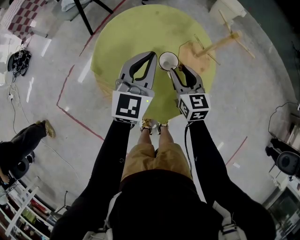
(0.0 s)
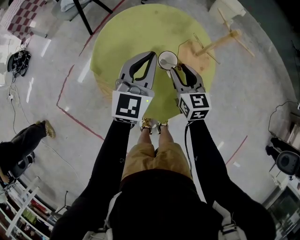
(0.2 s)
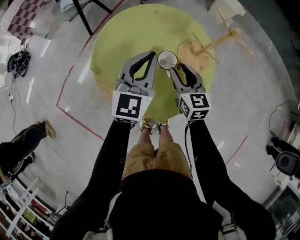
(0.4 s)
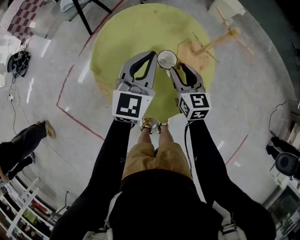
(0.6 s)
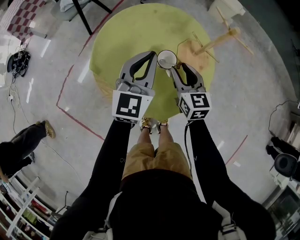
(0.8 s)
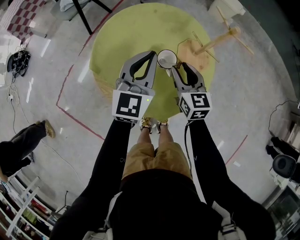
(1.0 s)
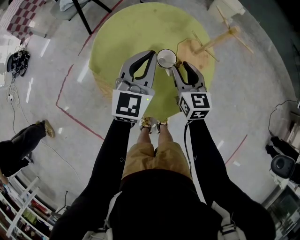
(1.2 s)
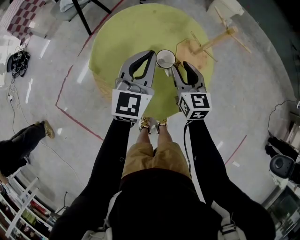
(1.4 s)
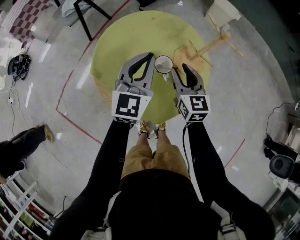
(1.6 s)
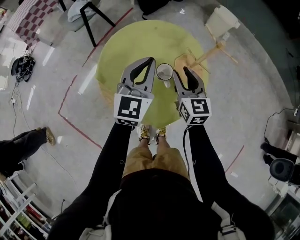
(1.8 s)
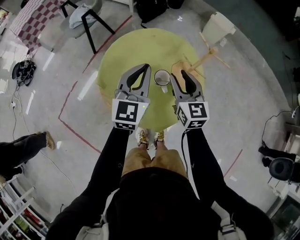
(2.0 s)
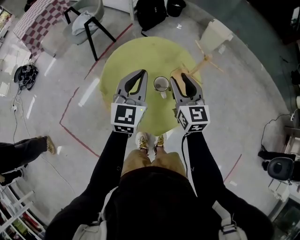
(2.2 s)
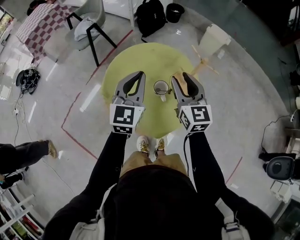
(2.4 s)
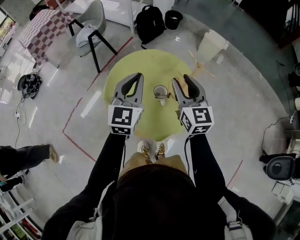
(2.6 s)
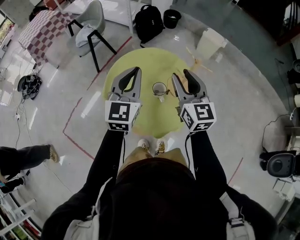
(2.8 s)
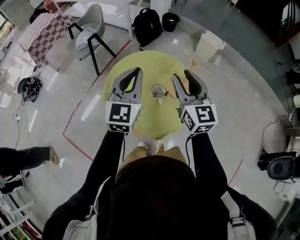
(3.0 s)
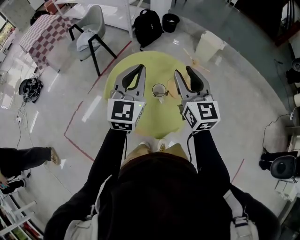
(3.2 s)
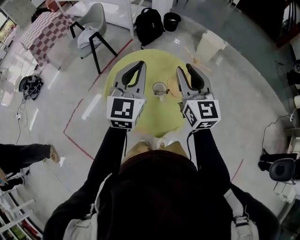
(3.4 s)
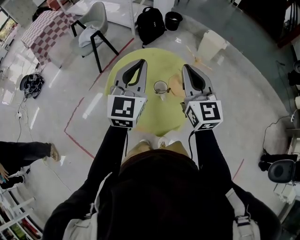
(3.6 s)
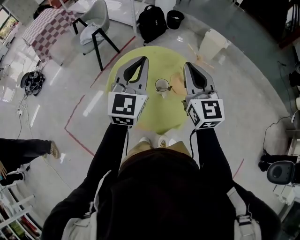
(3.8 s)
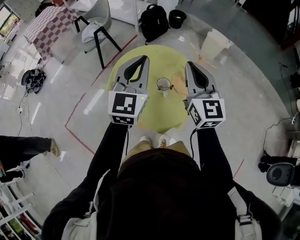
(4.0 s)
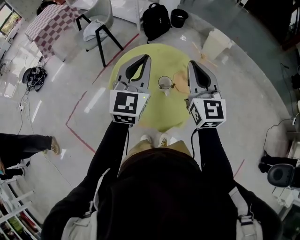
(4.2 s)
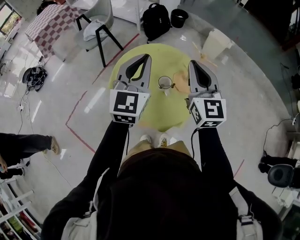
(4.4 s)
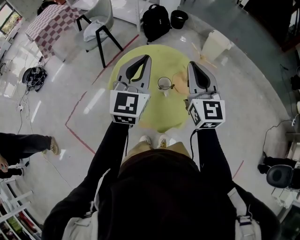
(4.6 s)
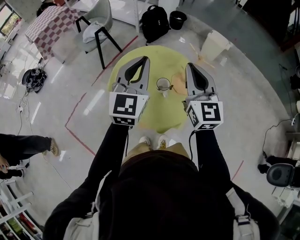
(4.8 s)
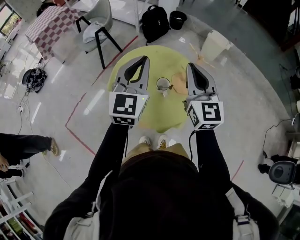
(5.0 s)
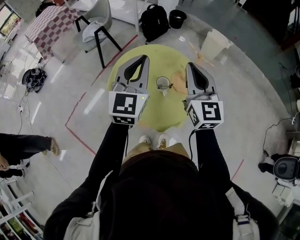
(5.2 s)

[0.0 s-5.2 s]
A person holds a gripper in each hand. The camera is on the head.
0.0 to 1.8 s: The right gripper travels upward by approximately 10 cm.
1.8 to 3.4 s: The two grippers go roughly 20 cm upward.
3.4 to 5.2 s: The right gripper closes its fingers.

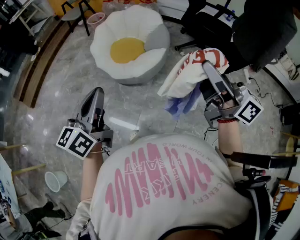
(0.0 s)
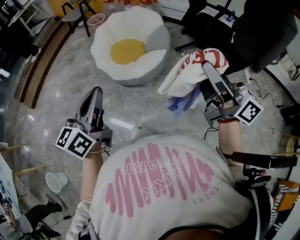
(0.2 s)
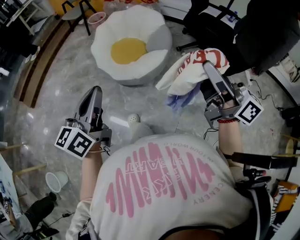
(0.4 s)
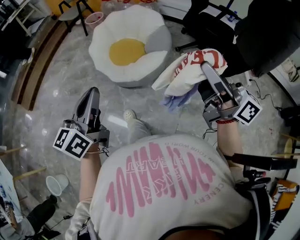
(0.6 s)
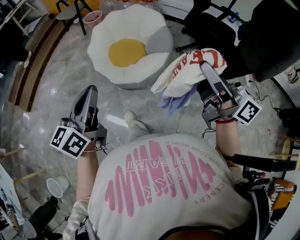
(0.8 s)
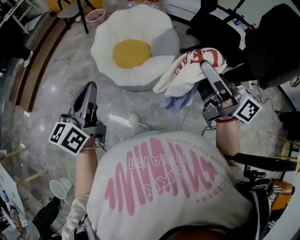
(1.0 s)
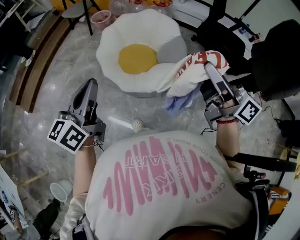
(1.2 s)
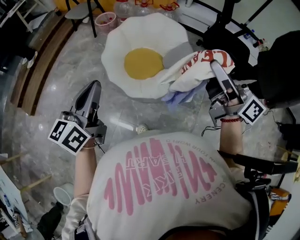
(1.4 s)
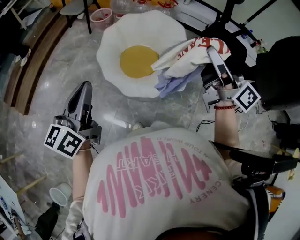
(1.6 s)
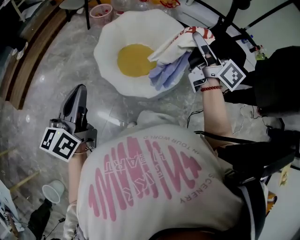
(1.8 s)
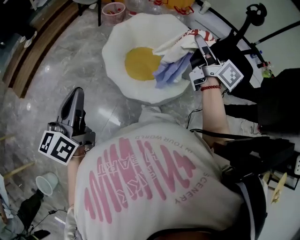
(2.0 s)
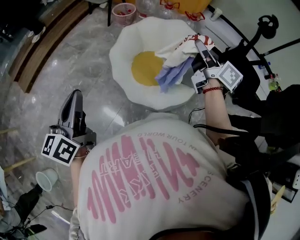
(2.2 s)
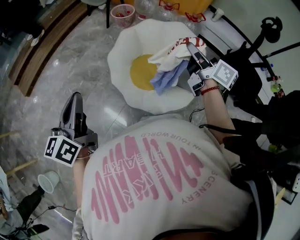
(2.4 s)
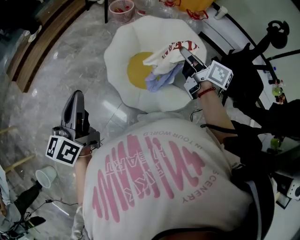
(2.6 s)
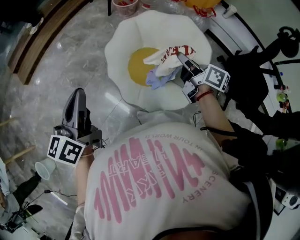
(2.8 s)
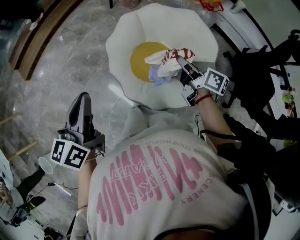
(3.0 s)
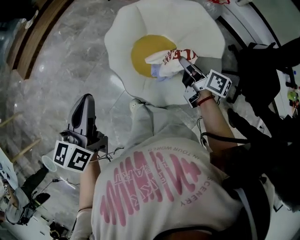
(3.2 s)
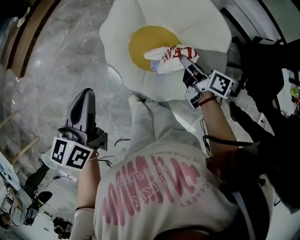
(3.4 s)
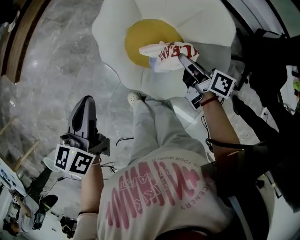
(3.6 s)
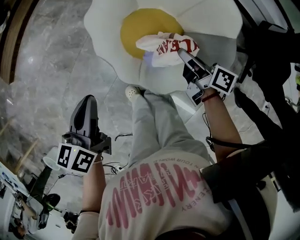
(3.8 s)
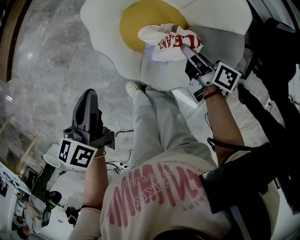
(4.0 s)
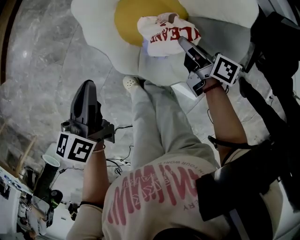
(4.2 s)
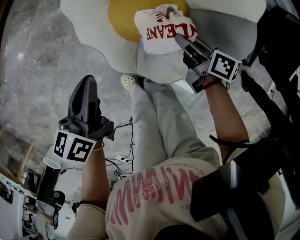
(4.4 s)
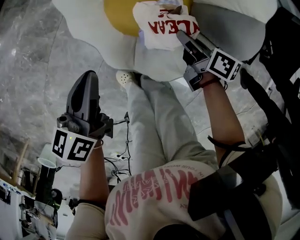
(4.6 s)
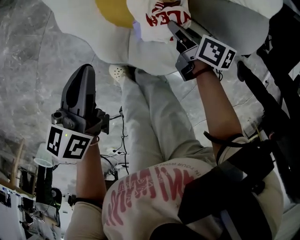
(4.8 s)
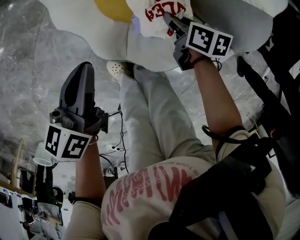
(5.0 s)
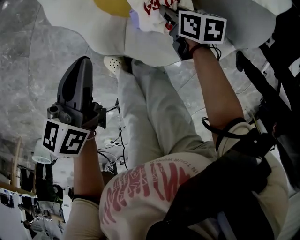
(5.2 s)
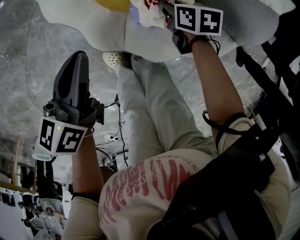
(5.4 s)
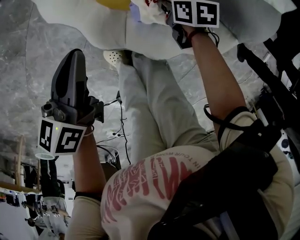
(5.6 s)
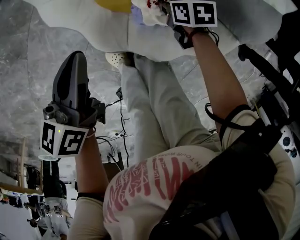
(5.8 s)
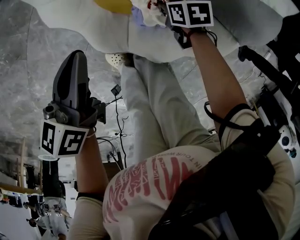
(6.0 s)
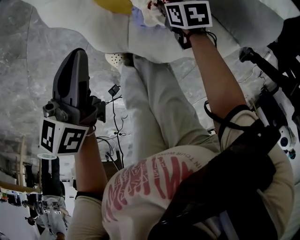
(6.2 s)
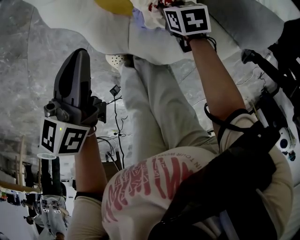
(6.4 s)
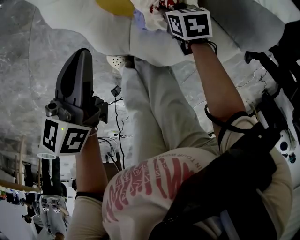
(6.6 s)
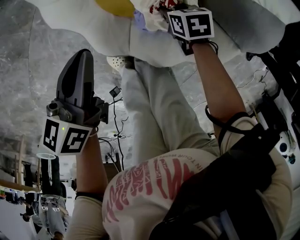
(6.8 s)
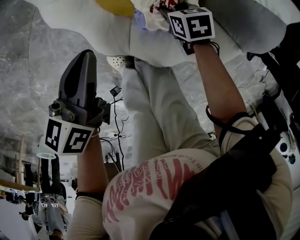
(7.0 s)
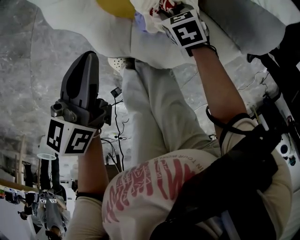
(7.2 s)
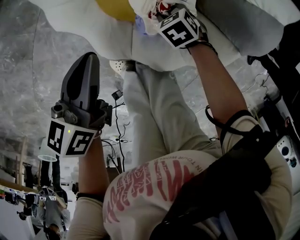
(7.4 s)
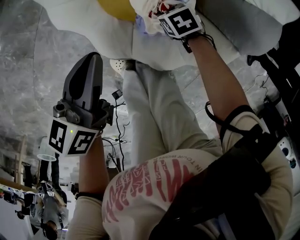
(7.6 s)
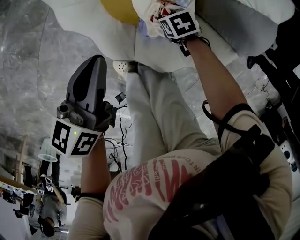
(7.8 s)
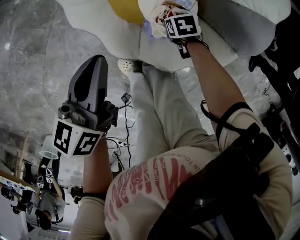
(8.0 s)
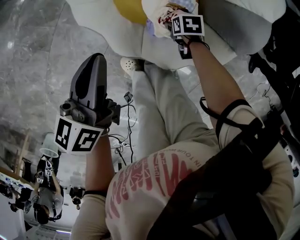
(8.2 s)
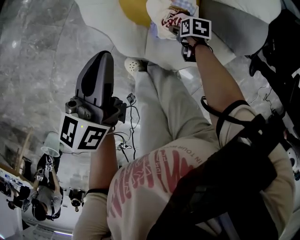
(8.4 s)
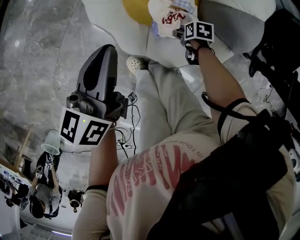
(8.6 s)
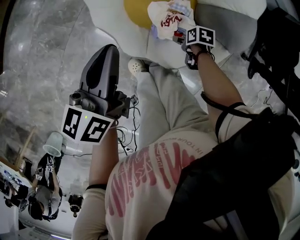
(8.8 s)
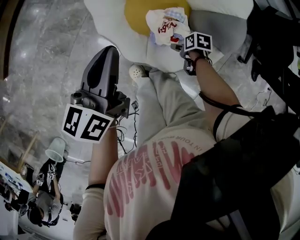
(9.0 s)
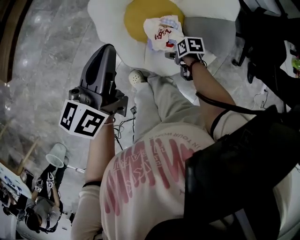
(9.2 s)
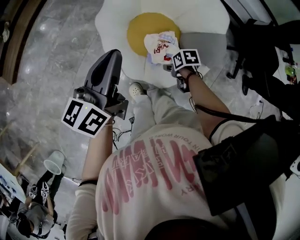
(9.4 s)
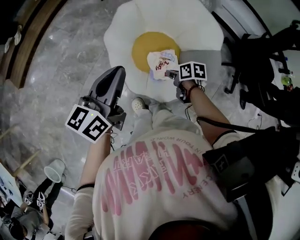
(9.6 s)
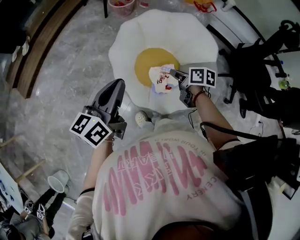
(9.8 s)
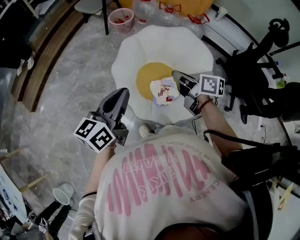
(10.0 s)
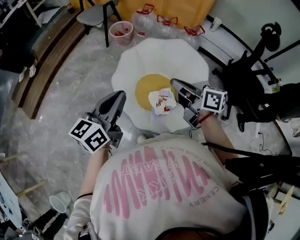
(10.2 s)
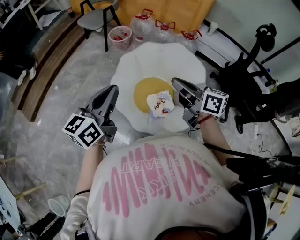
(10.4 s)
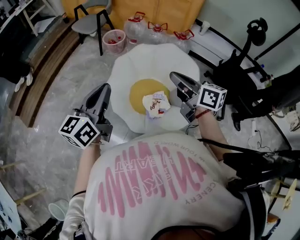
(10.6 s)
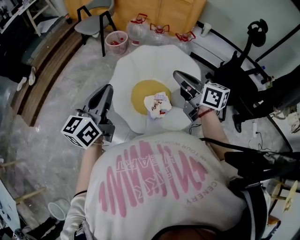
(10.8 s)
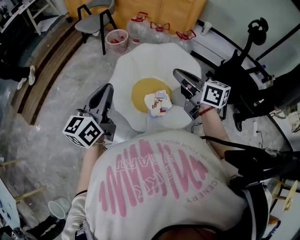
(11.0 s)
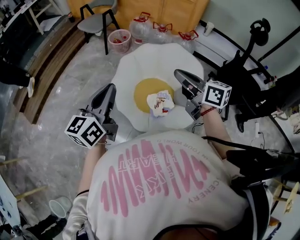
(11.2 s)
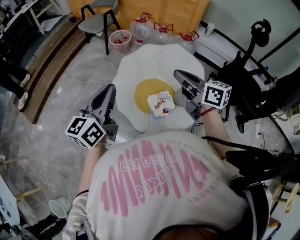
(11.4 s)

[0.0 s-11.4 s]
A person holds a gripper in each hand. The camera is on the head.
0.0 to 1.4 s: The right gripper heads forward, covering about 25 cm, while the left gripper shifts about 30 cm forward and to the left.
1.4 to 2.8 s: The right gripper shifts roughly 40 cm forward and downward, and changes its angle by about 40 degrees; the left gripper moves forward, some 15 cm, and swivels about 30 degrees.
2.8 to 4.2 s: The left gripper goes about 20 cm downward, forward and to the right, and changes its angle by roughly 30 degrees. Meanwhile the right gripper is displaced downward by some 10 cm, and turns by approximately 20 degrees.
4.2 to 5.6 s: The left gripper shifts about 10 cm downward; the right gripper moves downward, some 20 cm, and points its fingers some 40 degrees further downward.
5.6 to 7.2 s: The right gripper rotates roughly 30 degrees.
7.2 to 8.6 s: The left gripper shifts roughly 15 cm upward; the right gripper moves some 5 cm, changes its angle by some 40 degrees, and opens.
8.6 to 10.0 s: The left gripper travels upward by approximately 20 cm, and turns by roughly 20 degrees. The right gripper shifts approximately 50 cm upward, points its fingers some 60 degrees further upward, and closes up.
10.0 to 11.4 s: The right gripper heads upward, covering roughly 10 cm, and swivels about 30 degrees. The left gripper moves upward, roughly 5 cm.

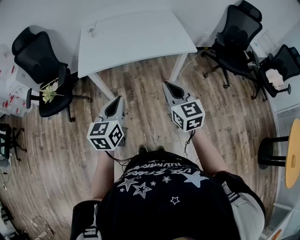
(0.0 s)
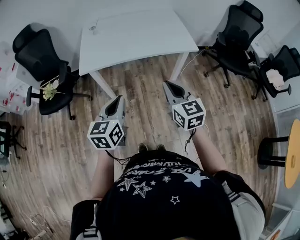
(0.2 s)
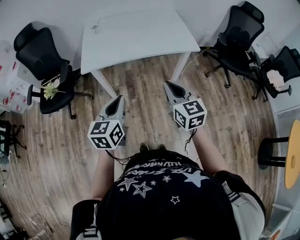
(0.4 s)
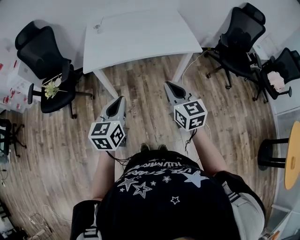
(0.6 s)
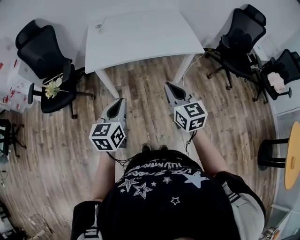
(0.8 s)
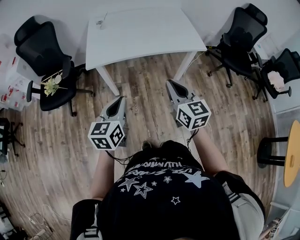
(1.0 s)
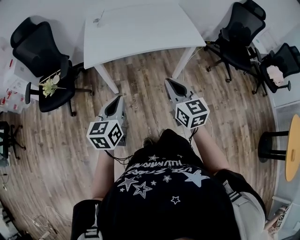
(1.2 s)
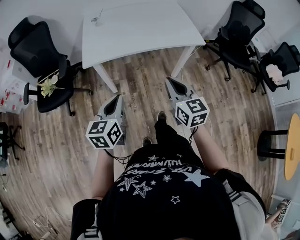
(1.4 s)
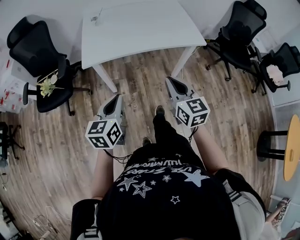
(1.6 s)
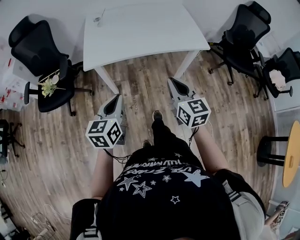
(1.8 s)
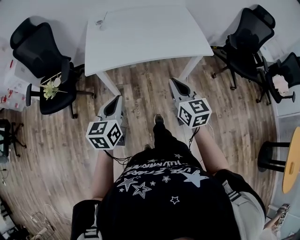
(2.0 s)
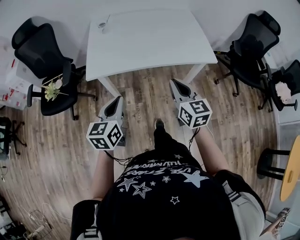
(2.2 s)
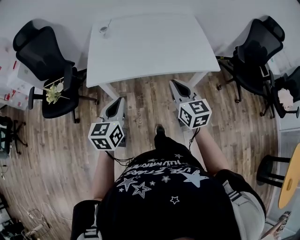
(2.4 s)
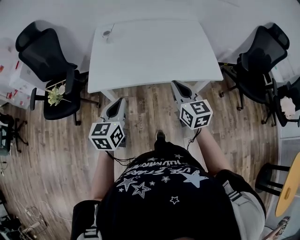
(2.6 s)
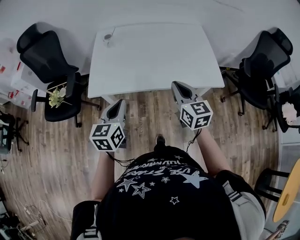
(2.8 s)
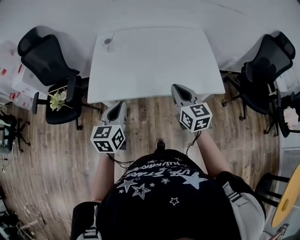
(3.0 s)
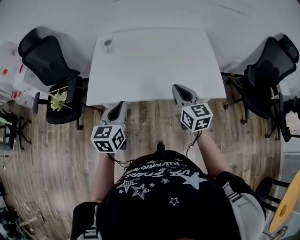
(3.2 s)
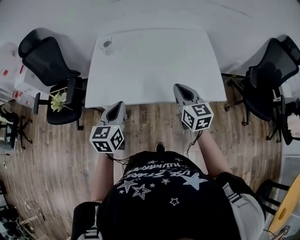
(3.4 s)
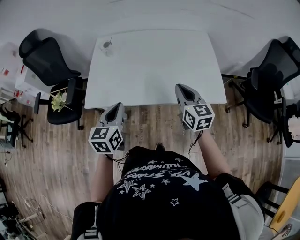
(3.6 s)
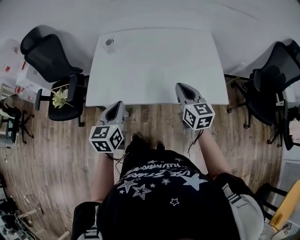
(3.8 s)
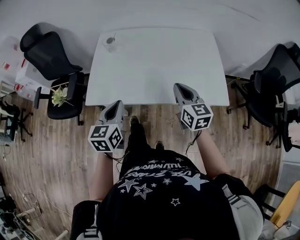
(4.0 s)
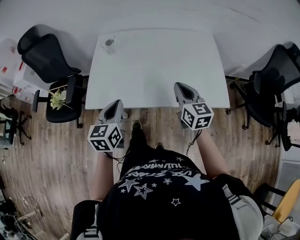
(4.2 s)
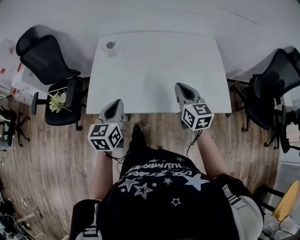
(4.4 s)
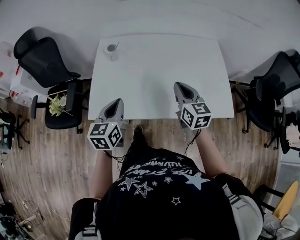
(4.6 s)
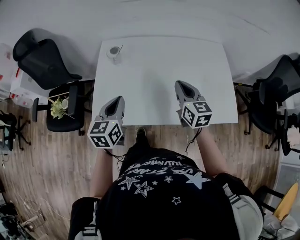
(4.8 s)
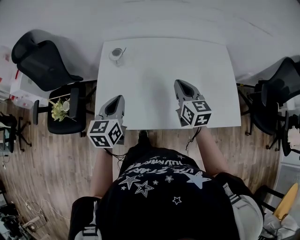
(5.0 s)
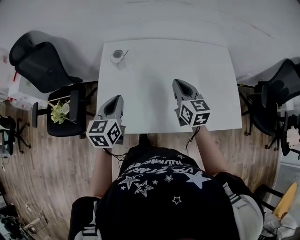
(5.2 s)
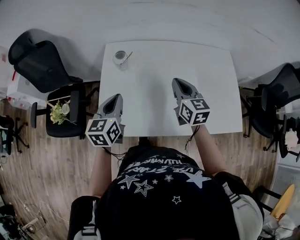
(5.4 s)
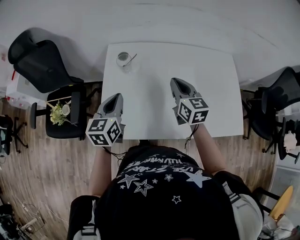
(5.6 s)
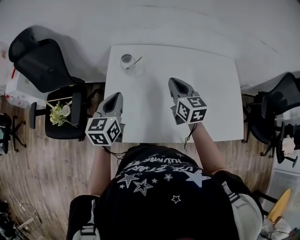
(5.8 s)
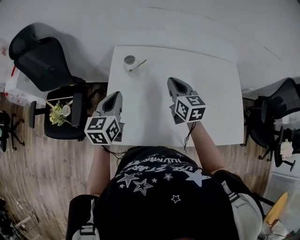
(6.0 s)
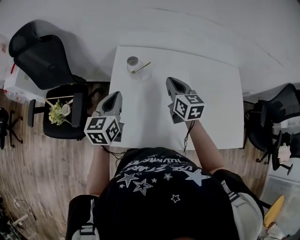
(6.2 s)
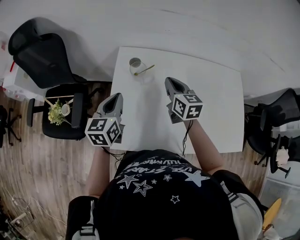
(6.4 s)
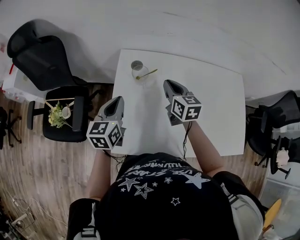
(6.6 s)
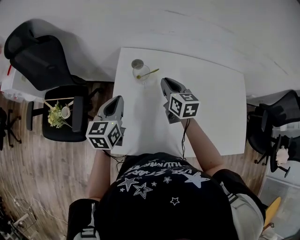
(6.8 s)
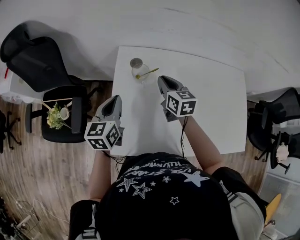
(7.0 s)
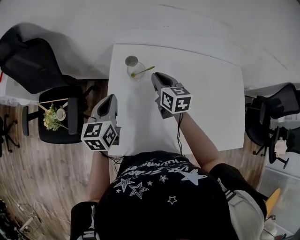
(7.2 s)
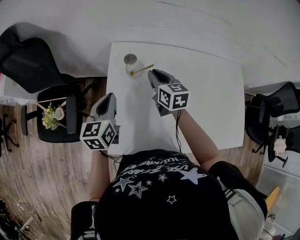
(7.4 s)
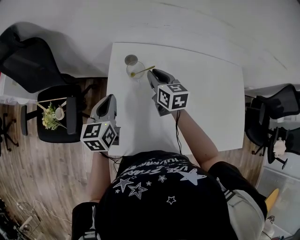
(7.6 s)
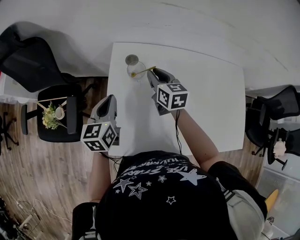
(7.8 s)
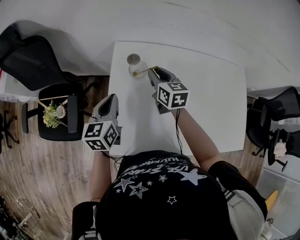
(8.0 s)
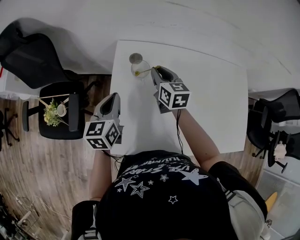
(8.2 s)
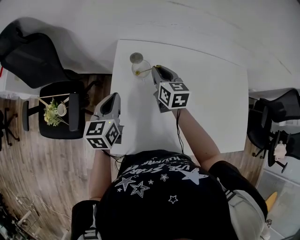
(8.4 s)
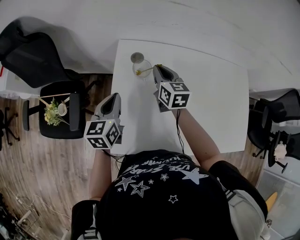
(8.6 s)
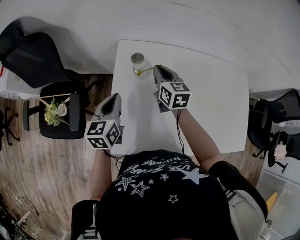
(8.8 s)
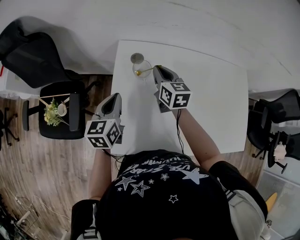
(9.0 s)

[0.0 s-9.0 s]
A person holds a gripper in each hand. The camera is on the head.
0.0 to 1.6 s: Both grippers move to the left, about 10 cm.
1.6 to 3.0 s: The grippers both shift forward by approximately 25 cm.
3.0 to 4.4 s: Both grippers travel together forward, approximately 10 cm.
4.4 to 6.0 s: The grippers both shift forward and to the left by approximately 30 cm.
6.0 to 7.6 s: The right gripper is displaced forward, to the left and downward by about 15 cm. The left gripper heads forward, covering approximately 10 cm.
7.6 to 9.0 s: The grippers move only a little.
